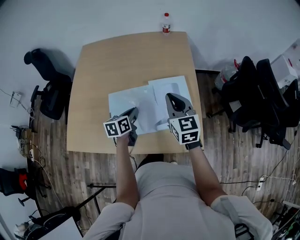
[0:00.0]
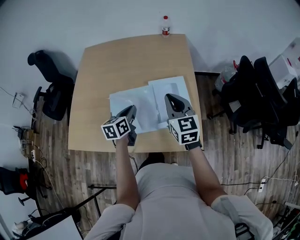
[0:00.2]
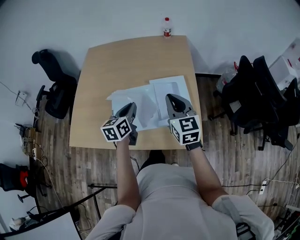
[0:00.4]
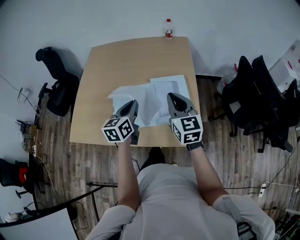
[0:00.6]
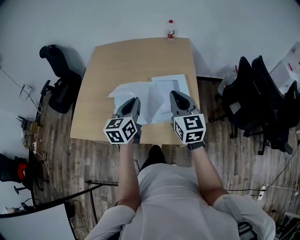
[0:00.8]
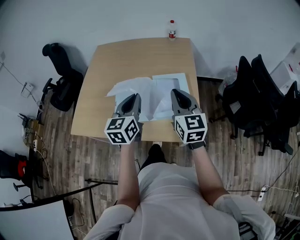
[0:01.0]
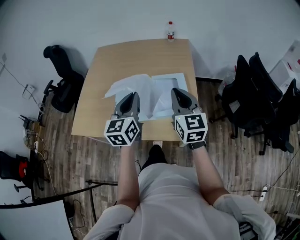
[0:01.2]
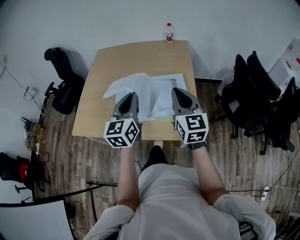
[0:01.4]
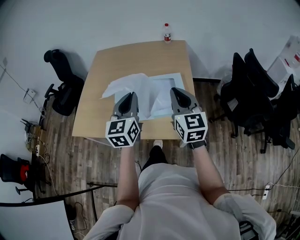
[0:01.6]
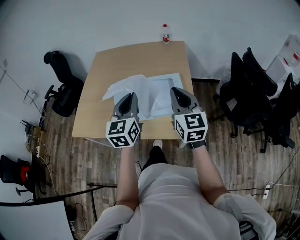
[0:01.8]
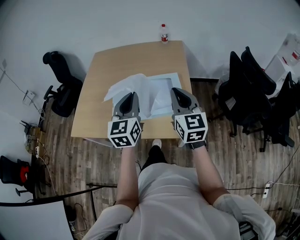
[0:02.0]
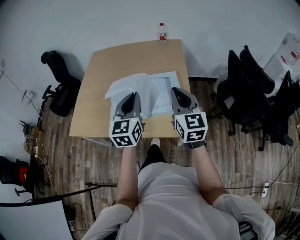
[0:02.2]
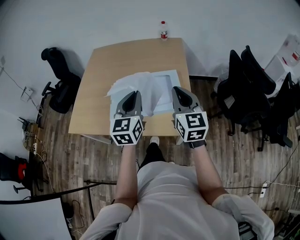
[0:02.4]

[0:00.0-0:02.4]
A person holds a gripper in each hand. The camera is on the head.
0:00.0 to 0:01.2: The right gripper travels backward and upward by about 15 cm; the left gripper heads upward and backward, covering some 25 cm, and turns by approximately 40 degrees.
0:01.2 to 0:02.4: The left gripper changes place by about 5 cm; the right gripper shifts by roughly 5 cm.

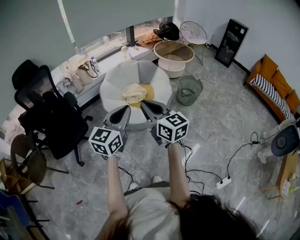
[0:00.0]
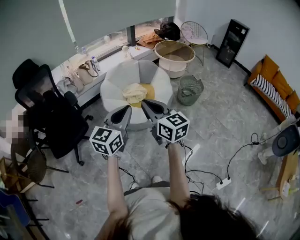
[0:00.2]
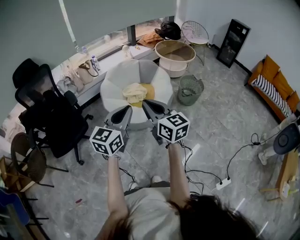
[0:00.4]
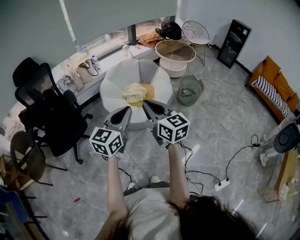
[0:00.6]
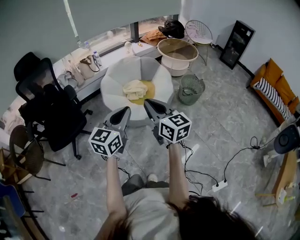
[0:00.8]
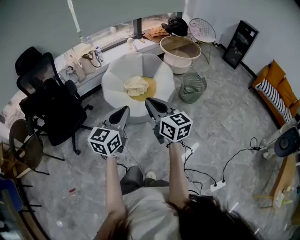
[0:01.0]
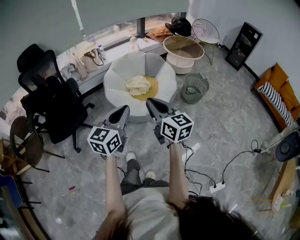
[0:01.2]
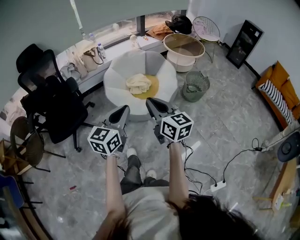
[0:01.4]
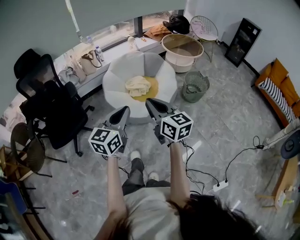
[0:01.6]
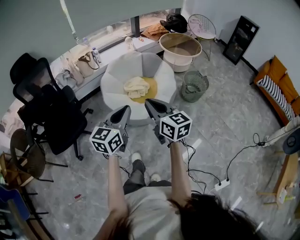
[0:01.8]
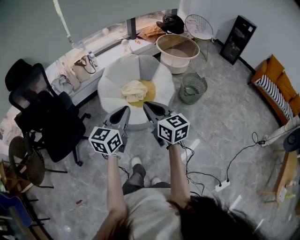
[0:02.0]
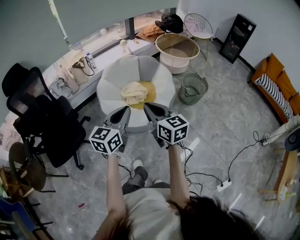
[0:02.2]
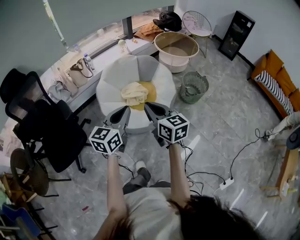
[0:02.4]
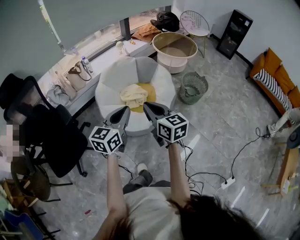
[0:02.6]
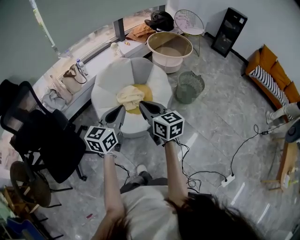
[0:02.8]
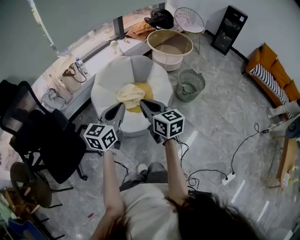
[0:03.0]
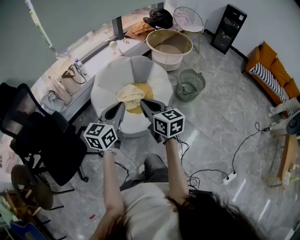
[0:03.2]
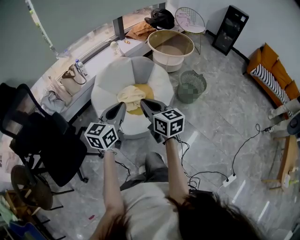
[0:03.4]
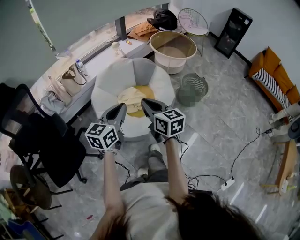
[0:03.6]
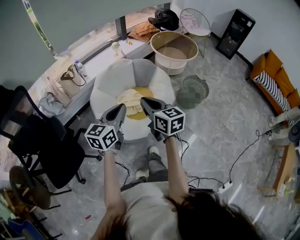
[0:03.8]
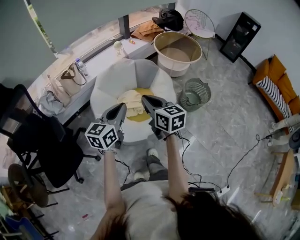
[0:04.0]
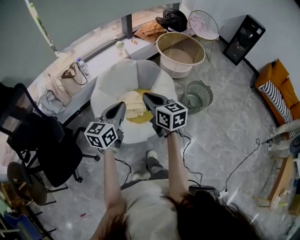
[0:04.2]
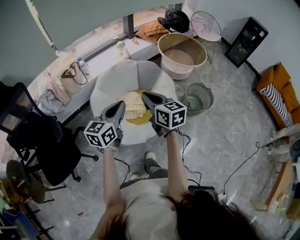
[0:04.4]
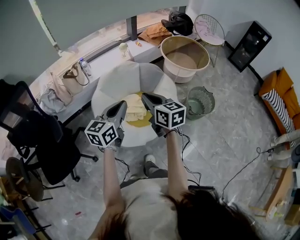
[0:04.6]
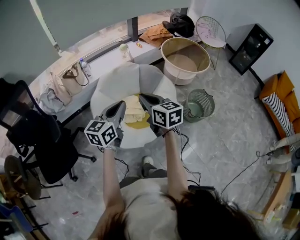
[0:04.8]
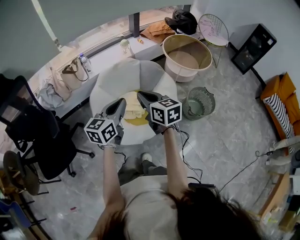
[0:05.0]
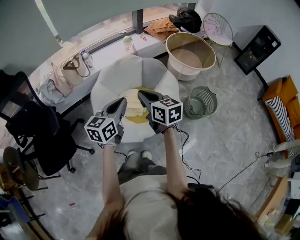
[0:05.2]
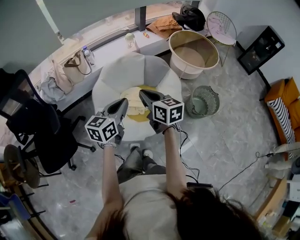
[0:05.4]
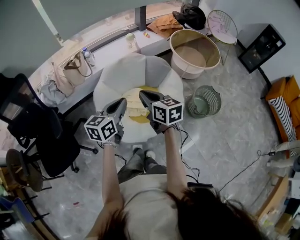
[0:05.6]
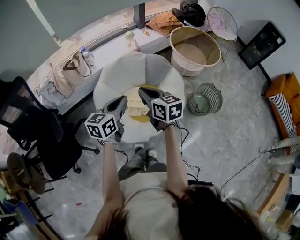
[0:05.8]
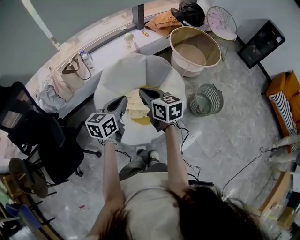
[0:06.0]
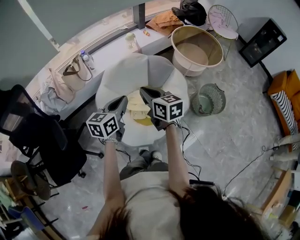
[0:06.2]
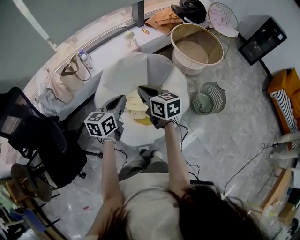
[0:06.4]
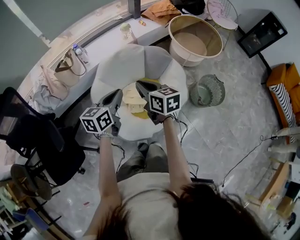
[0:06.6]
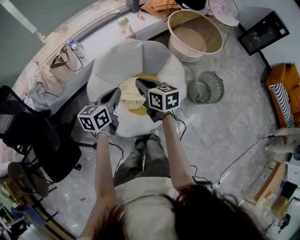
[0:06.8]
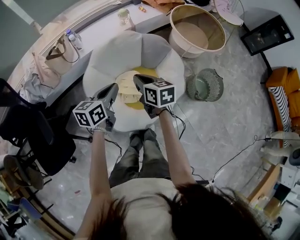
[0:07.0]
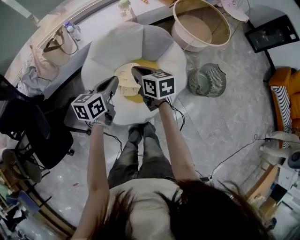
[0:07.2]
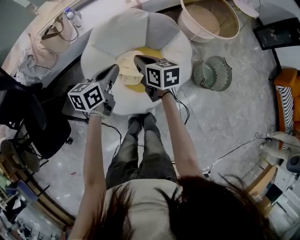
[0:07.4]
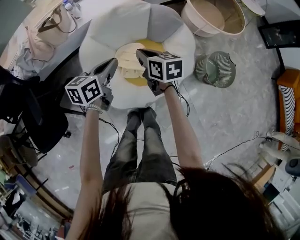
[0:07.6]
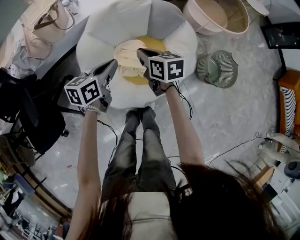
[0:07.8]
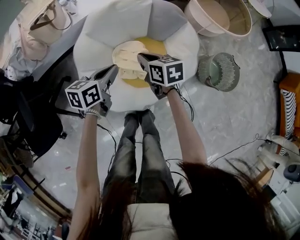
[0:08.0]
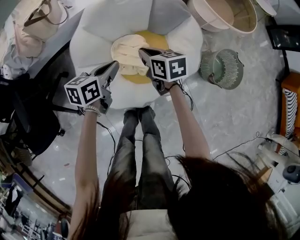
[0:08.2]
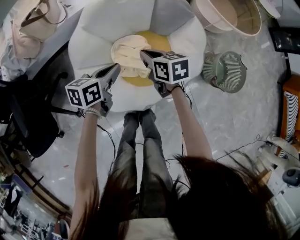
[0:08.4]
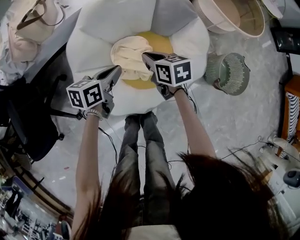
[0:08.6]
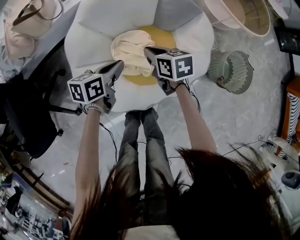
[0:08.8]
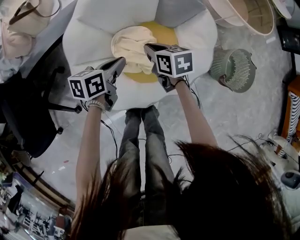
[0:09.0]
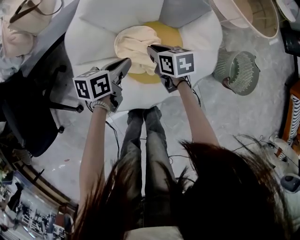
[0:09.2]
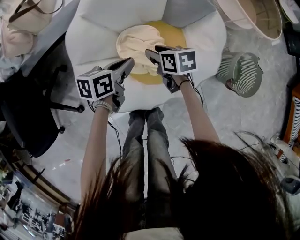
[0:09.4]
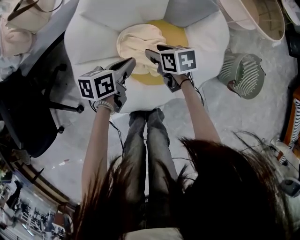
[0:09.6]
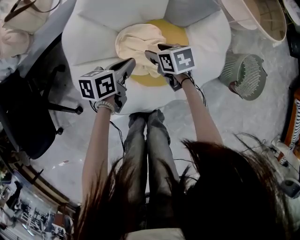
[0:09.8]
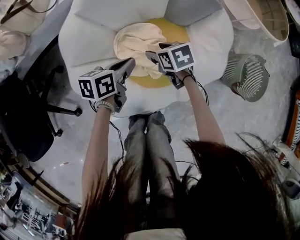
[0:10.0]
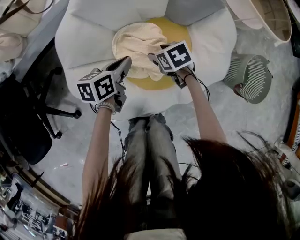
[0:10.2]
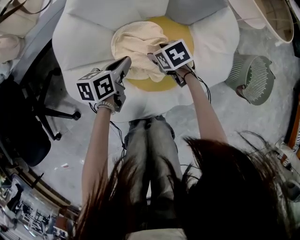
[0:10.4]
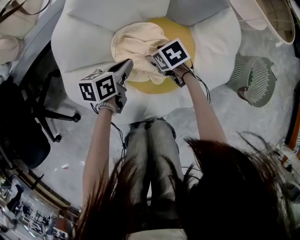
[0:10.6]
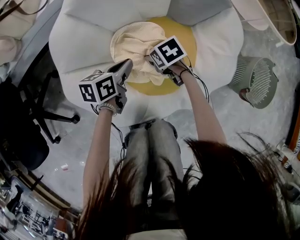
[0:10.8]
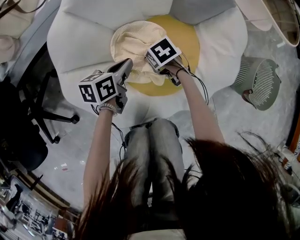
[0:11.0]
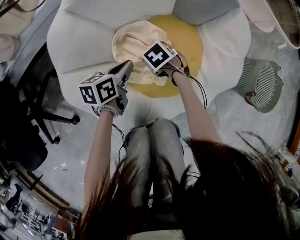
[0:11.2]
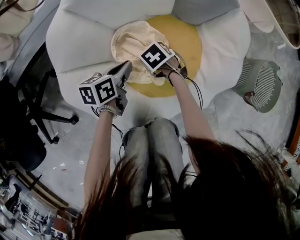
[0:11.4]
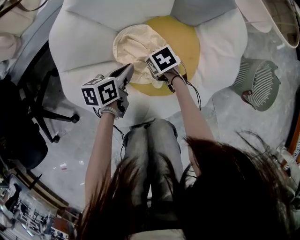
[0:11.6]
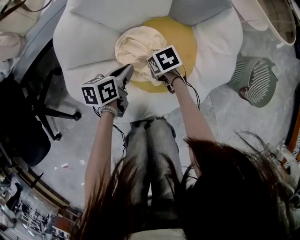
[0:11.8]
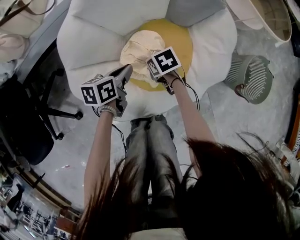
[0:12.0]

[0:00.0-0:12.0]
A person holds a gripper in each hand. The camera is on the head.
0:00.0 to 0:01.6: The right gripper changes place by some 5 cm. The left gripper shifts by about 5 cm.
0:01.6 to 0:03.0: Both grippers travel together forward, some 20 cm.
0:03.0 to 0:04.4: Both grippers travel together forward, approximately 20 cm.
0:04.4 to 0:06.0: The right gripper moves forward, some 10 cm. Meanwhile the left gripper moves forward and downward, roughly 15 cm.
0:06.0 to 0:07.6: The grippers both shift downward and forward by roughly 20 cm.
0:07.6 to 0:09.0: Both grippers travel together downward, approximately 25 cm.
0:09.0 to 0:10.4: Both grippers move downward, approximately 15 cm. The right gripper rotates roughly 30 degrees, and opens its fingers.
0:10.4 to 0:12.0: The right gripper travels downward and back again, about 10 cm each way, and closes.

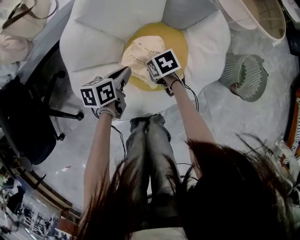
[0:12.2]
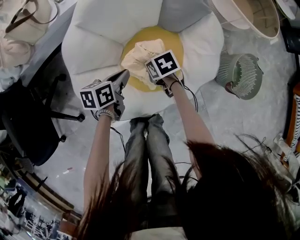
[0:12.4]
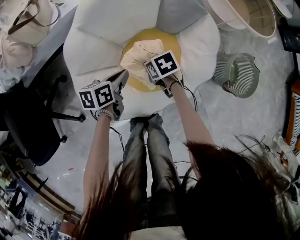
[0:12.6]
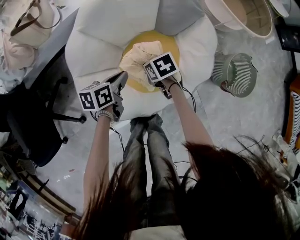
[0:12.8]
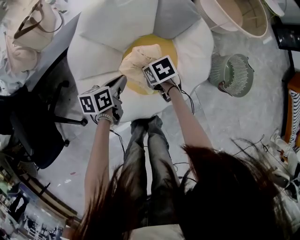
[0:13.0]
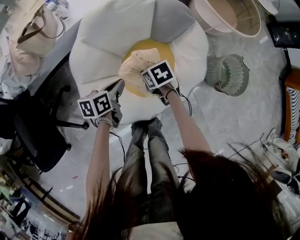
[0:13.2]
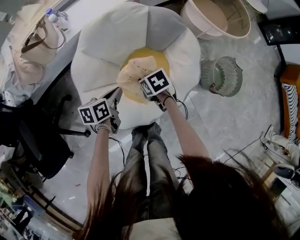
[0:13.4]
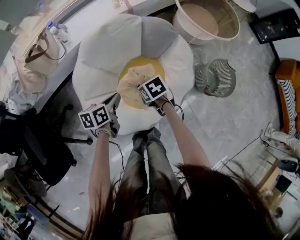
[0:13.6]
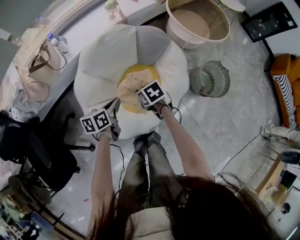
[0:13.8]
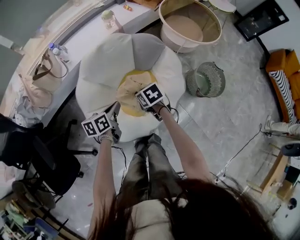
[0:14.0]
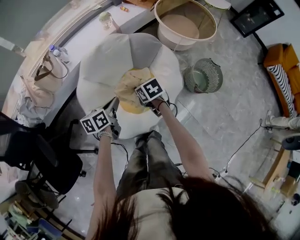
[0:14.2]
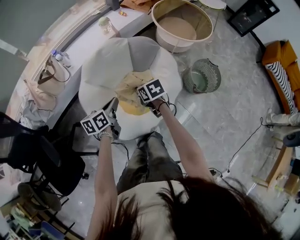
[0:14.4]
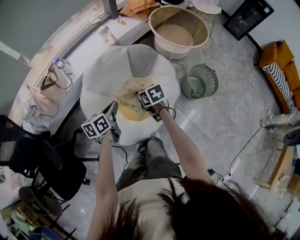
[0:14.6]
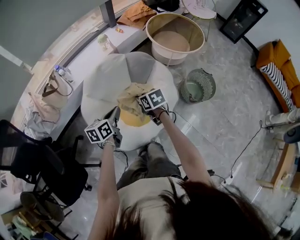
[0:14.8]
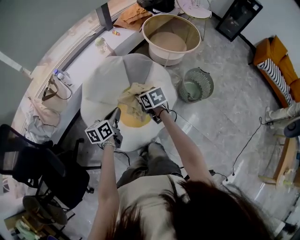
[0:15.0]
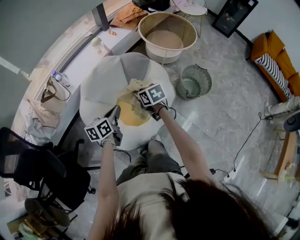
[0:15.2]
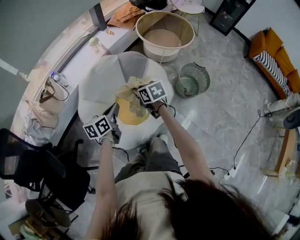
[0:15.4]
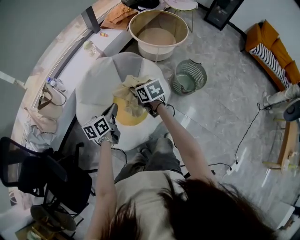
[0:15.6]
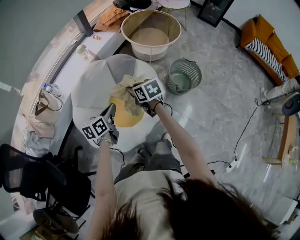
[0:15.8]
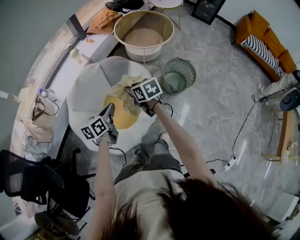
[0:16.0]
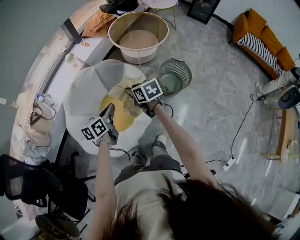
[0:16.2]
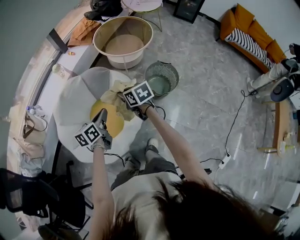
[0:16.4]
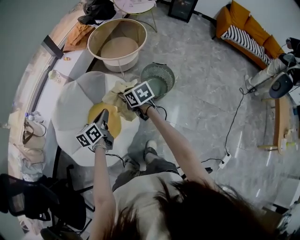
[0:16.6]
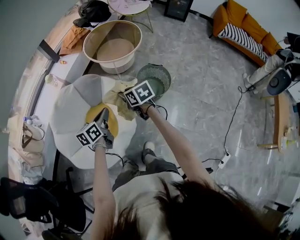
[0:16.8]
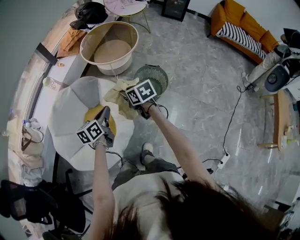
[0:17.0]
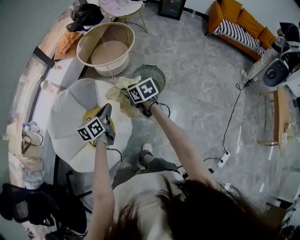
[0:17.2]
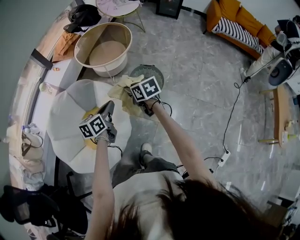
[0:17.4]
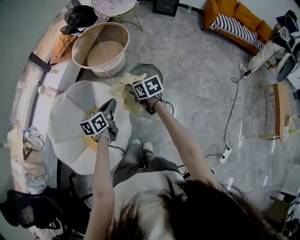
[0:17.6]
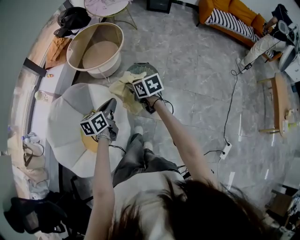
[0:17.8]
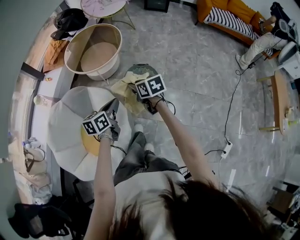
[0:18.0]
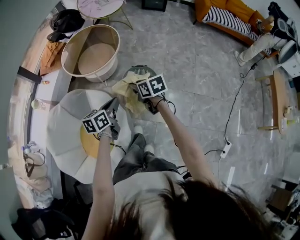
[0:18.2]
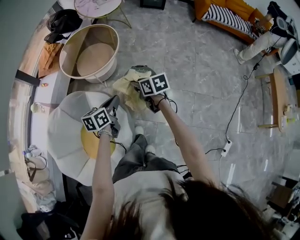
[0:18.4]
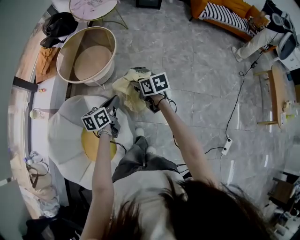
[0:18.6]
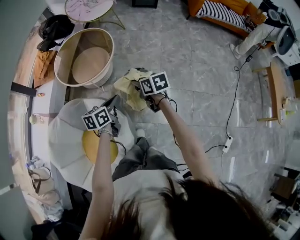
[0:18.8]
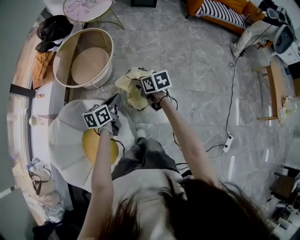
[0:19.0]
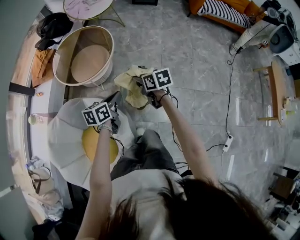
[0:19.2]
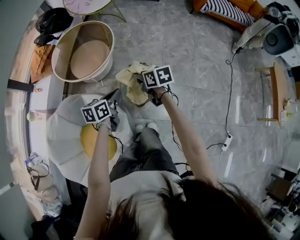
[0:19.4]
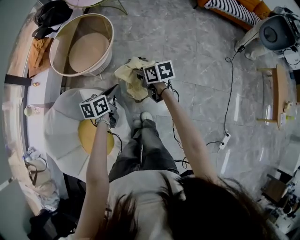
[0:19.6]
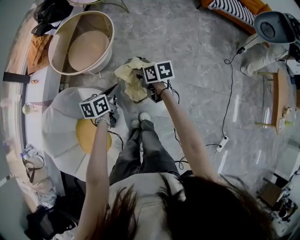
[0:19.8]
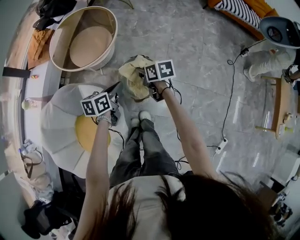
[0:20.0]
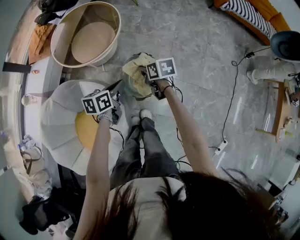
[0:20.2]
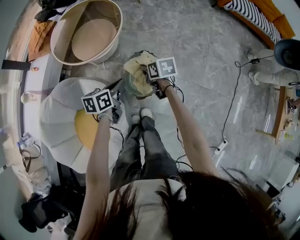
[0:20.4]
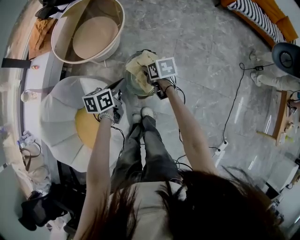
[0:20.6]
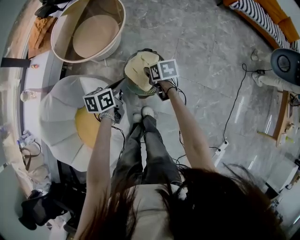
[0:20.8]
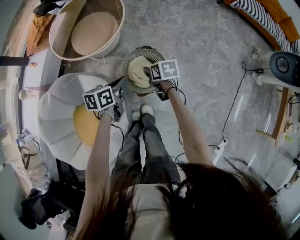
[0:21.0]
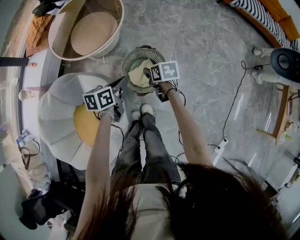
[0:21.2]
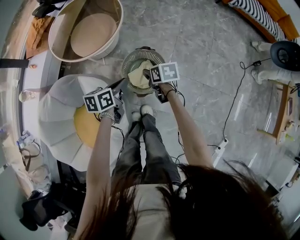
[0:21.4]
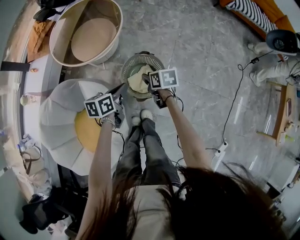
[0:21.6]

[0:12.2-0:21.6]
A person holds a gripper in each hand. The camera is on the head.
0:12.2 to 0:13.8: Both grippers move upward, some 25 cm.
0:13.8 to 0:15.4: The two grippers go about 15 cm upward. The right gripper turns by about 30 degrees.
0:15.4 to 0:17.0: Both grippers travel together to the right, some 30 cm.
0:17.0 to 0:18.4: The right gripper is displaced to the right and forward by roughly 20 cm. Meanwhile the left gripper goes approximately 20 cm forward and to the right.
0:18.4 to 0:20.0: The right gripper moves forward and downward, roughly 15 cm. Meanwhile the left gripper goes approximately 15 cm forward, downward and to the right.
0:20.0 to 0:21.6: The right gripper heads downward, covering roughly 5 cm.
